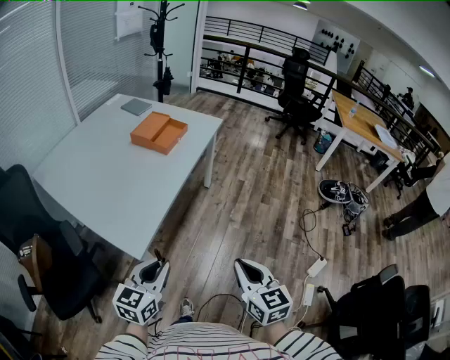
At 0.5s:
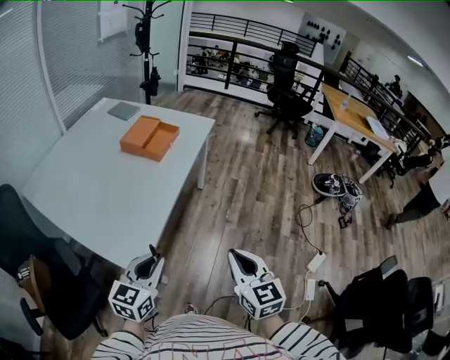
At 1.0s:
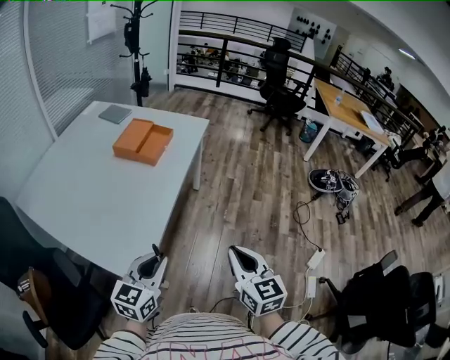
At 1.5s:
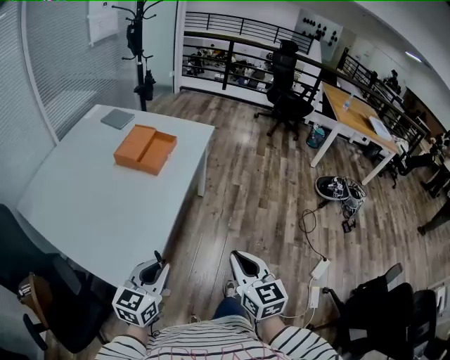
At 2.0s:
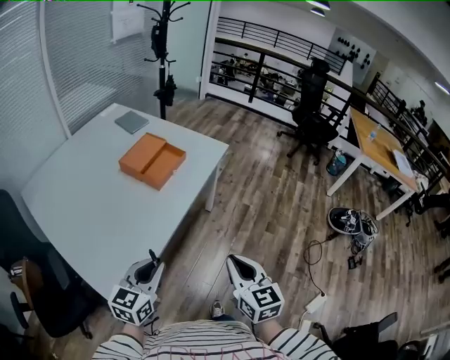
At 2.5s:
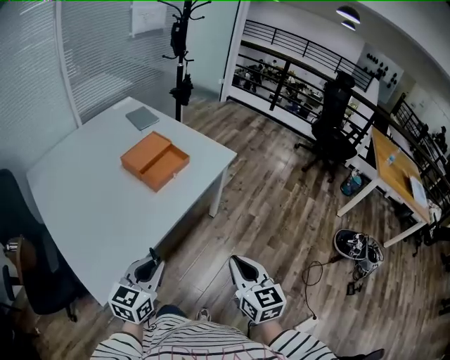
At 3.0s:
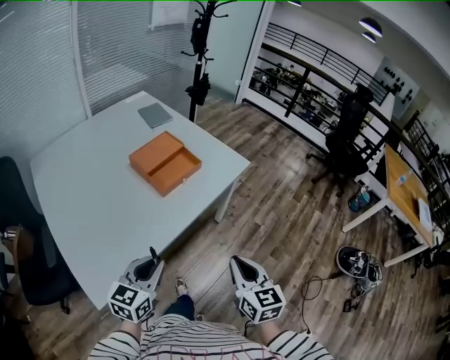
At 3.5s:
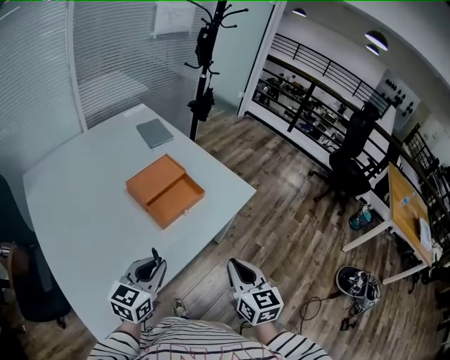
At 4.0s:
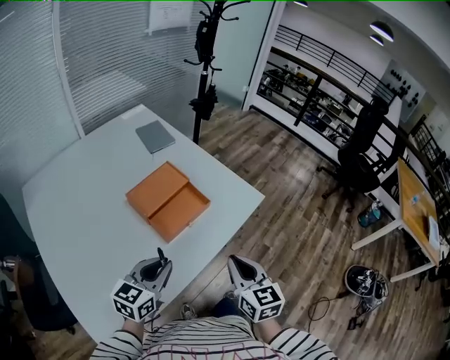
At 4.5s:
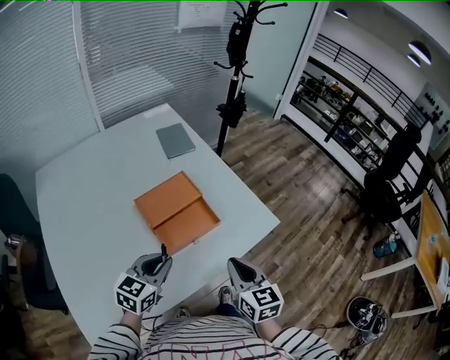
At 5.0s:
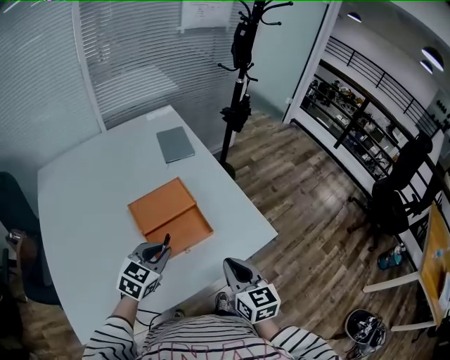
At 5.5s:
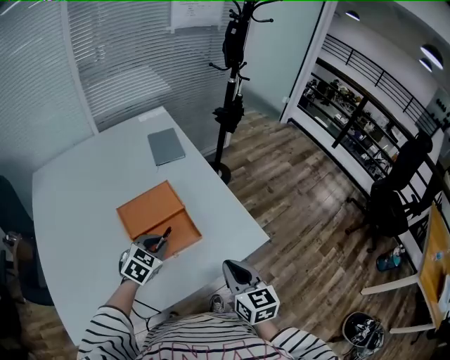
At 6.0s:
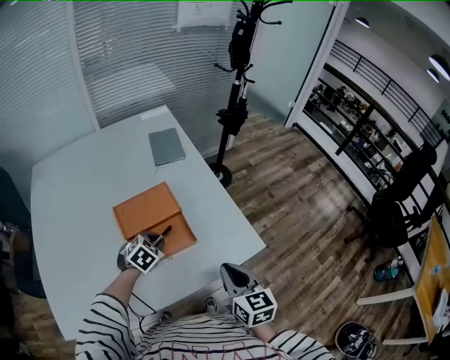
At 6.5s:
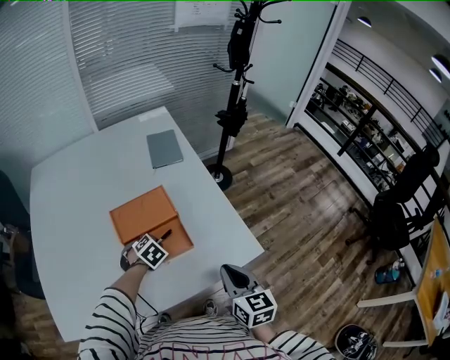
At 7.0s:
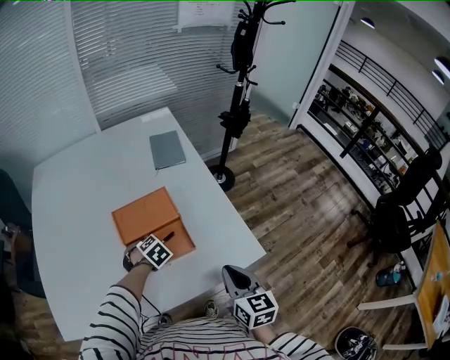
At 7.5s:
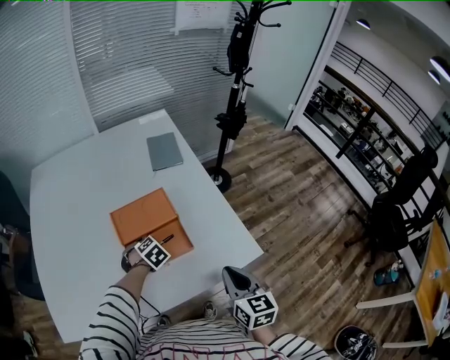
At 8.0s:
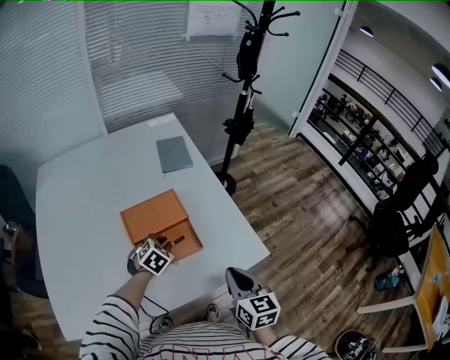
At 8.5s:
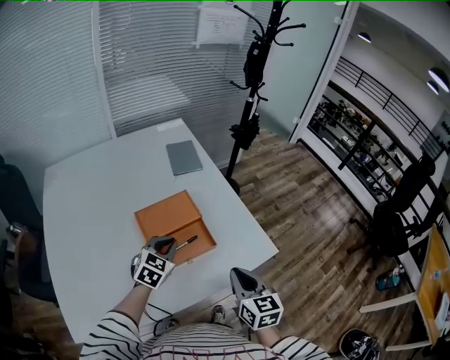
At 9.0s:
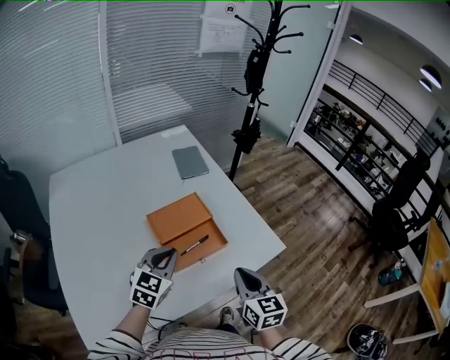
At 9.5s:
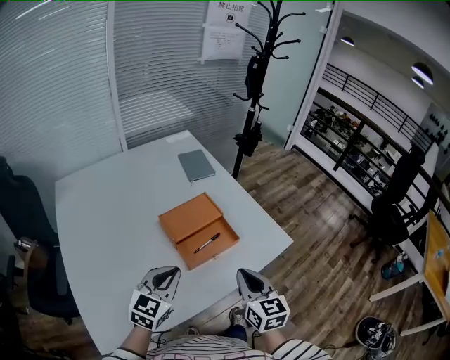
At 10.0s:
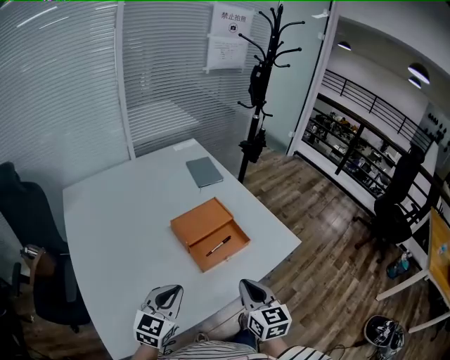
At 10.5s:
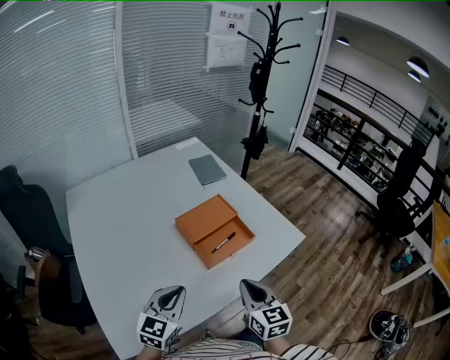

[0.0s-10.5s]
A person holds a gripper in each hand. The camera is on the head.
0.0s to 2.0s: The grippers both shift forward by some 25 cm.
2.0s to 4.0s: Both grippers travel together forward, about 30 cm.
4.0s to 6.5s: The right gripper ends up some 25 cm from where it was, and rotates about 20 degrees. Meanwhile the left gripper shifts by roughly 30 cm, and tilts its fingers some 50 degrees downward.
6.5s to 8.5s: The right gripper travels to the left by approximately 5 cm; the left gripper moves upward, approximately 15 cm, and angles its fingers upward, by roughly 30 degrees.
8.5s to 10.5s: The left gripper is displaced backward and to the left by about 25 cm. The right gripper shifts some 20 cm to the left and backward.

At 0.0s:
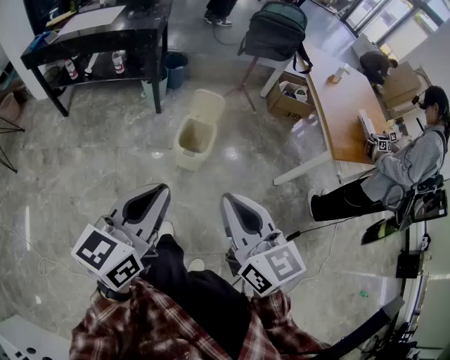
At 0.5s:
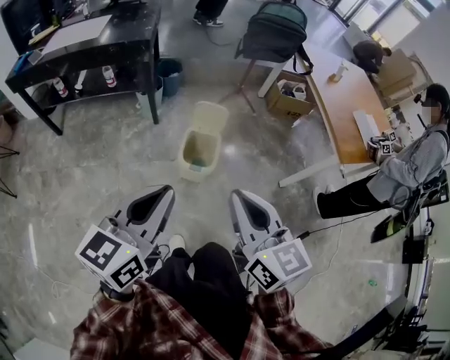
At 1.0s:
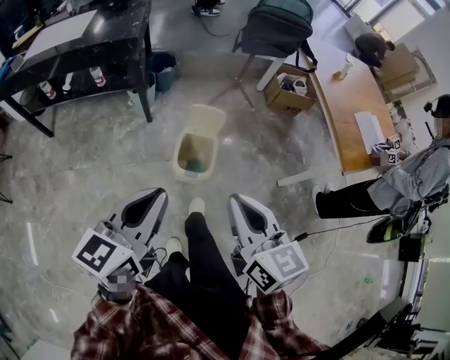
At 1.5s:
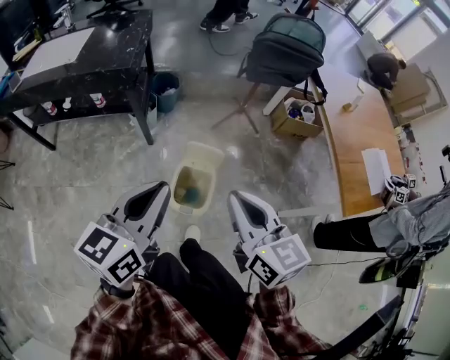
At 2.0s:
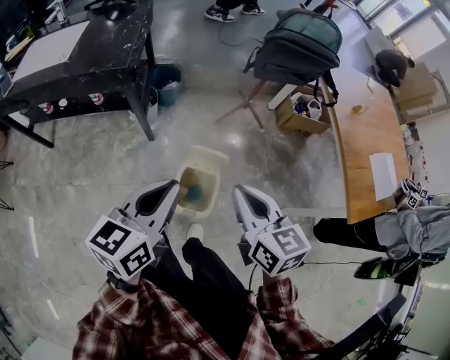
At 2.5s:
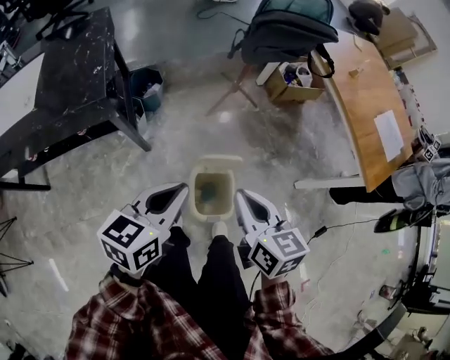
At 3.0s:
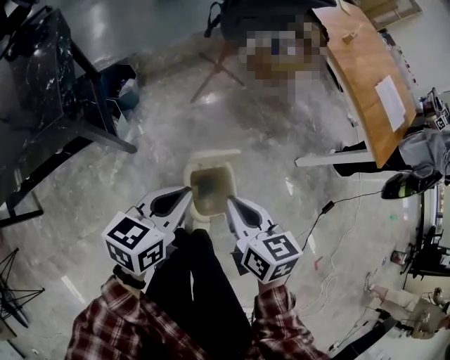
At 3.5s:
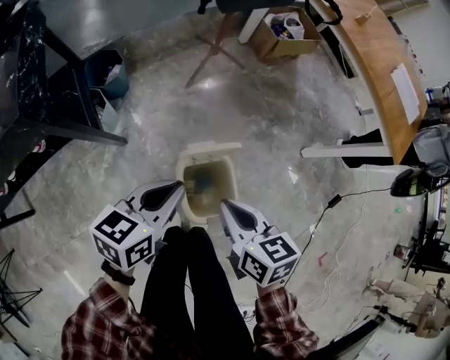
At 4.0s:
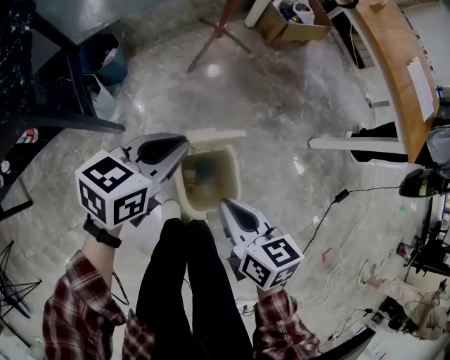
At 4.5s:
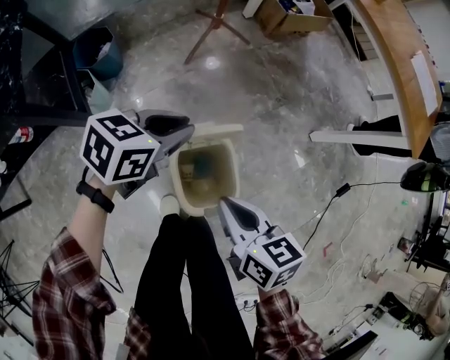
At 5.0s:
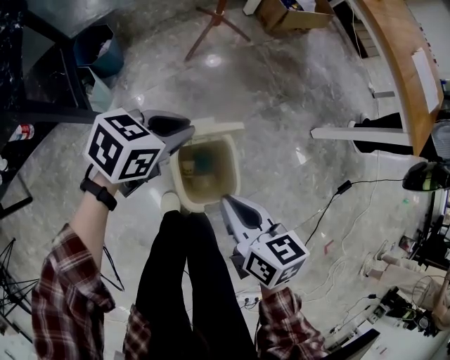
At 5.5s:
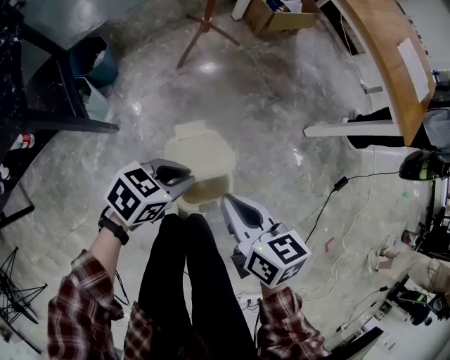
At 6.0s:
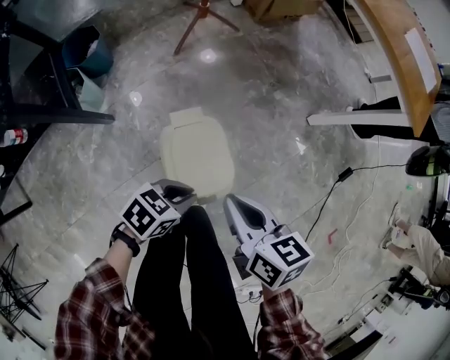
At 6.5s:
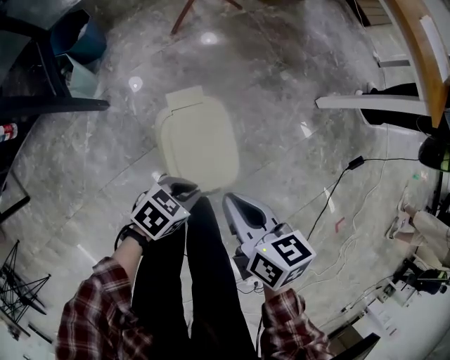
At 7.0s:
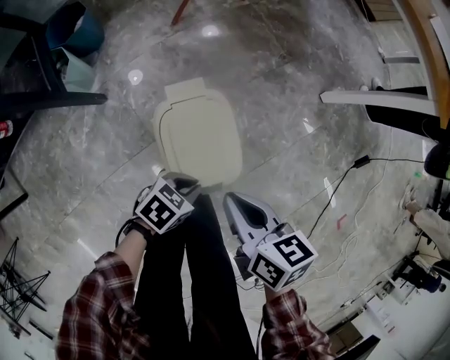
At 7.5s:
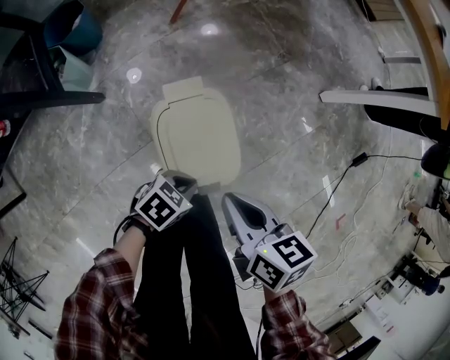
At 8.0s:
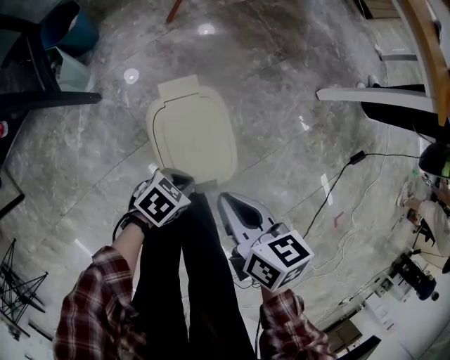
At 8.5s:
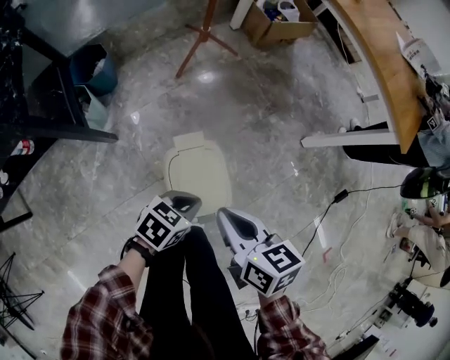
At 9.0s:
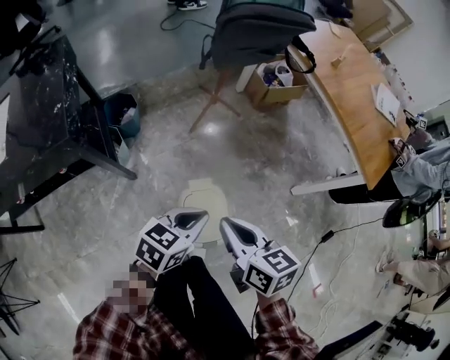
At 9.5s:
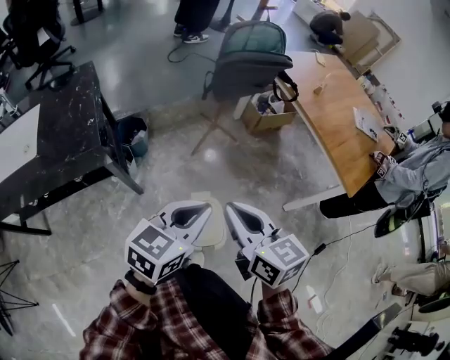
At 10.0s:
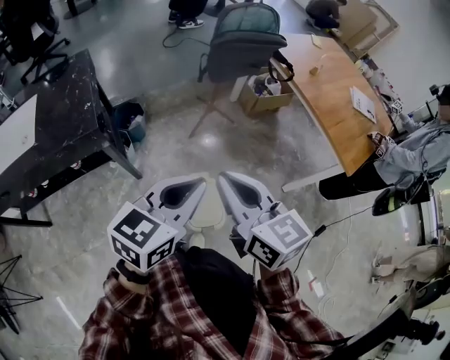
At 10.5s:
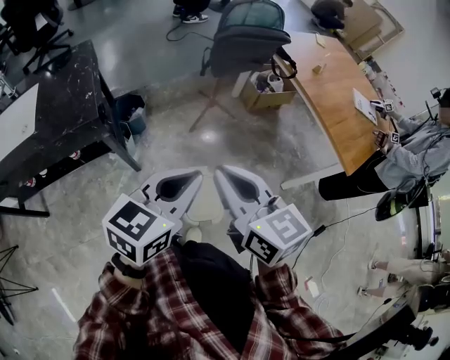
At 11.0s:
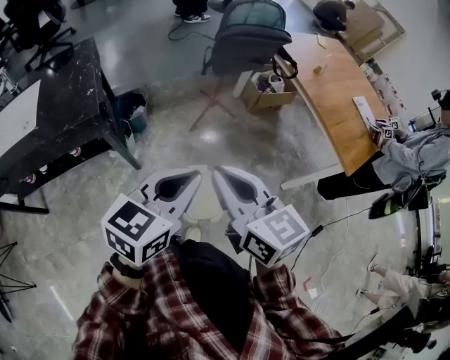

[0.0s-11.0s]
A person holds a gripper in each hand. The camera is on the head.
0.0s to 2.0s: The two grippers travel together, forward, some 40 cm.
2.0s to 3.5s: The two grippers go roughly 25 cm downward. The left gripper rotates approximately 40 degrees. The right gripper swivels approximately 30 degrees.
3.5s to 5.5s: The left gripper travels downward and to the right by approximately 15 cm, and turns by approximately 30 degrees. The right gripper heads to the right, covering about 5 cm.
5.5s to 7.5s: The left gripper travels downward by roughly 20 cm, while the right gripper travels downward by some 10 cm.
7.5s to 9.0s: Both grippers travel together upward, roughly 30 cm. The left gripper rotates about 40 degrees. The right gripper turns by roughly 20 degrees.
9.0s to 11.0s: The two grippers go some 25 cm upward. The left gripper changes its angle by some 20 degrees, while the right gripper turns by some 20 degrees.

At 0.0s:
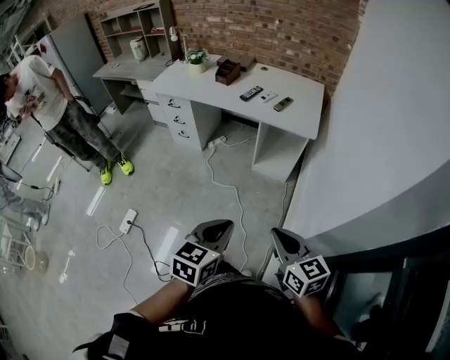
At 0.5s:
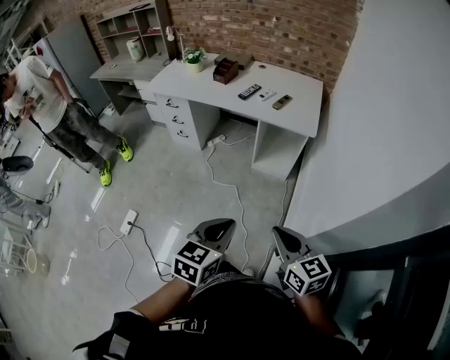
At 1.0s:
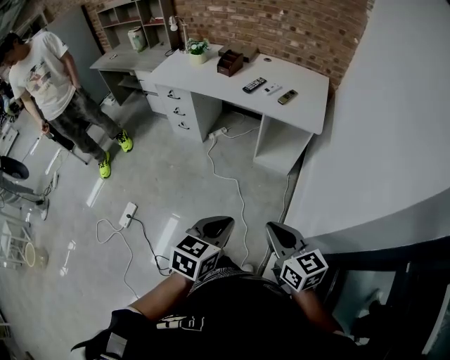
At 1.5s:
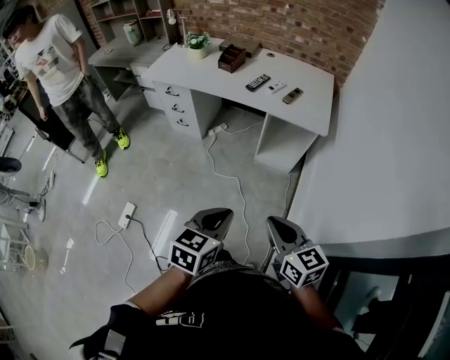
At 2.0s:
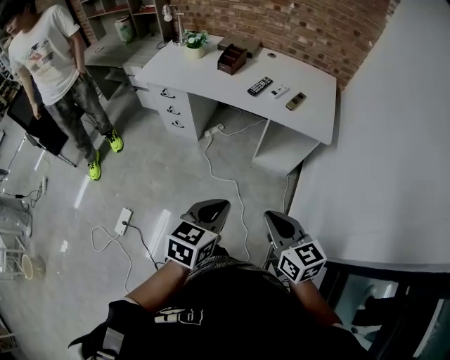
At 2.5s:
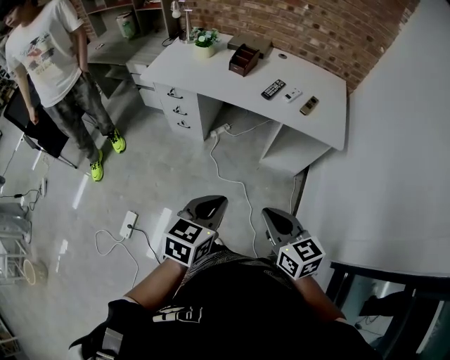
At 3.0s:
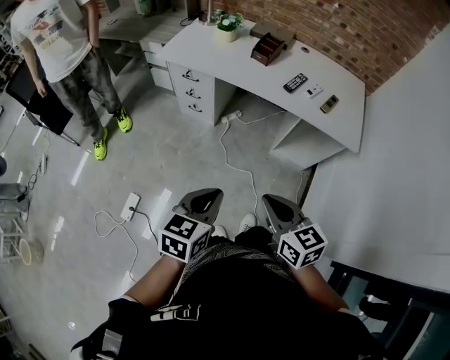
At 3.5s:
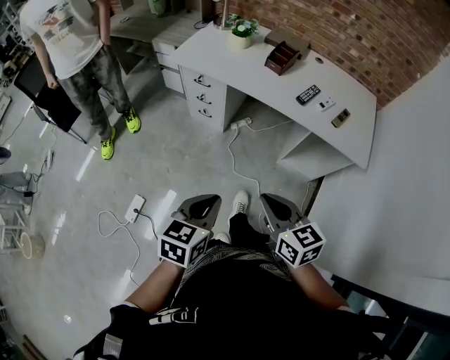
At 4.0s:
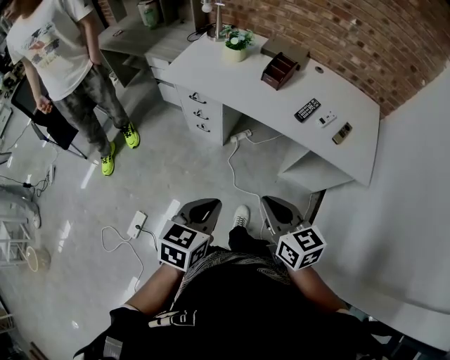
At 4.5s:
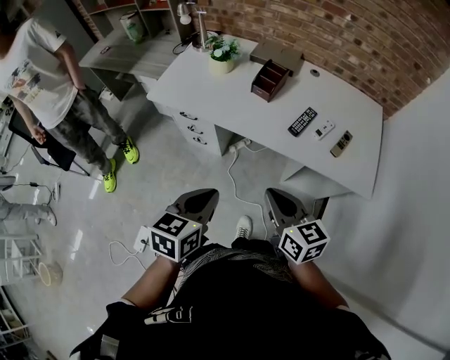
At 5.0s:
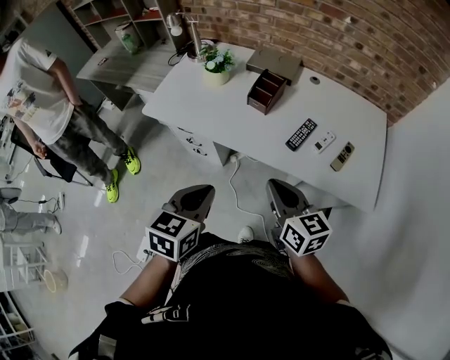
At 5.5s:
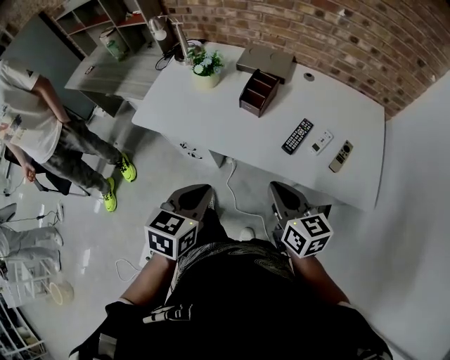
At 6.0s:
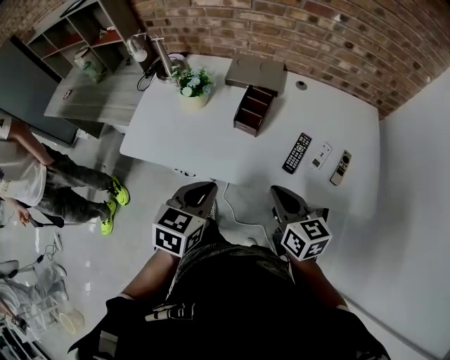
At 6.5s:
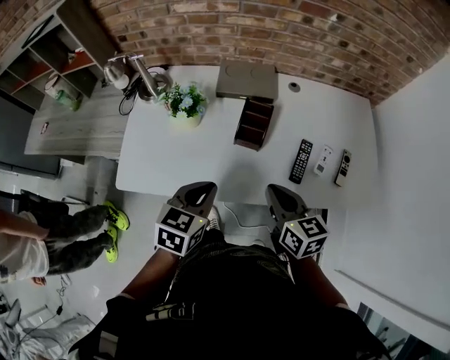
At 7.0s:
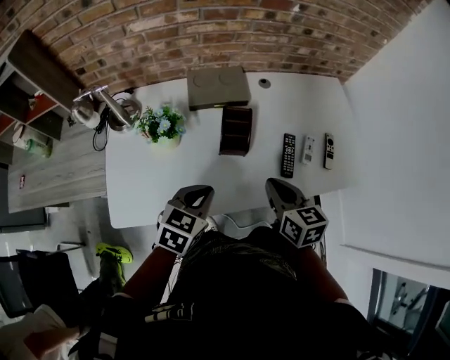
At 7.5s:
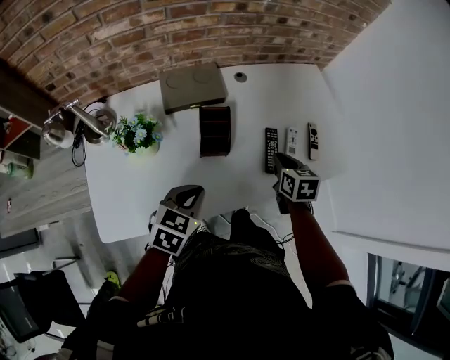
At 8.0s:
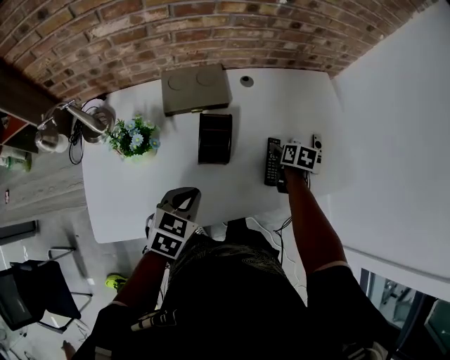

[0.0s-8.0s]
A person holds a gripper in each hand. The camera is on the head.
0.0s to 2.0s: The grippers both shift forward and to the left by approximately 20 cm.
2.0s to 4.0s: The left gripper moves to the left and forward, some 25 cm; the right gripper moves forward and to the left, about 25 cm.
4.0s to 6.0s: Both grippers move forward, about 35 cm.
6.0s to 8.0s: The right gripper changes place by approximately 30 cm, angles its fingers downward, by about 30 degrees, and opens; the left gripper ends up about 20 cm from where it was, and turns by roughly 30 degrees.
